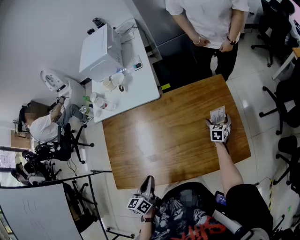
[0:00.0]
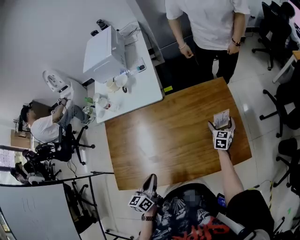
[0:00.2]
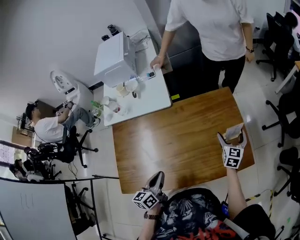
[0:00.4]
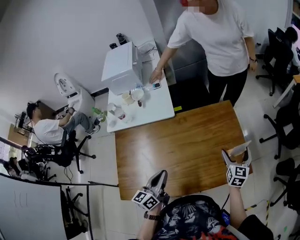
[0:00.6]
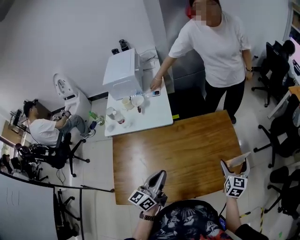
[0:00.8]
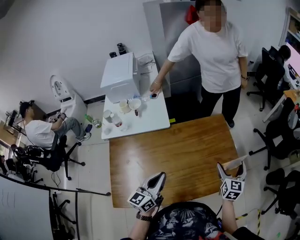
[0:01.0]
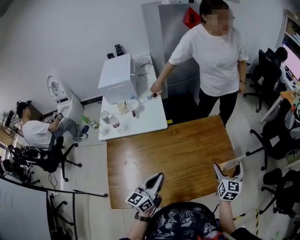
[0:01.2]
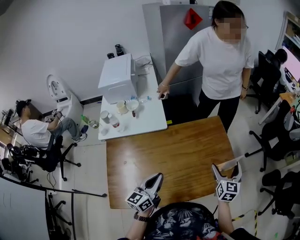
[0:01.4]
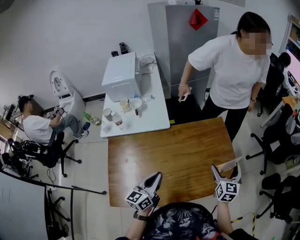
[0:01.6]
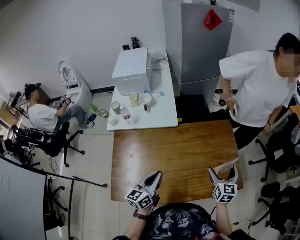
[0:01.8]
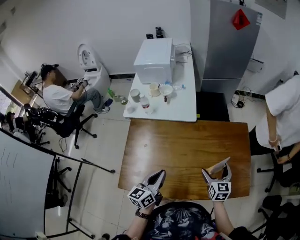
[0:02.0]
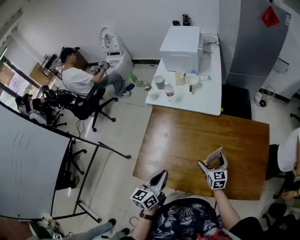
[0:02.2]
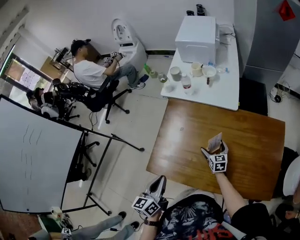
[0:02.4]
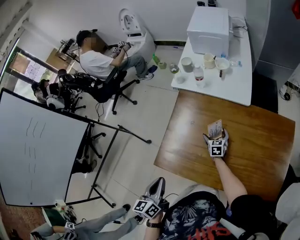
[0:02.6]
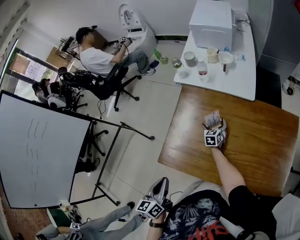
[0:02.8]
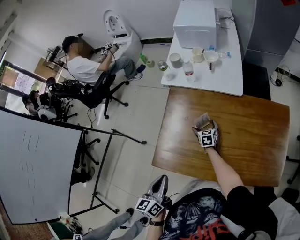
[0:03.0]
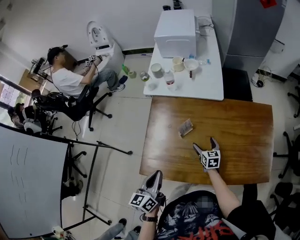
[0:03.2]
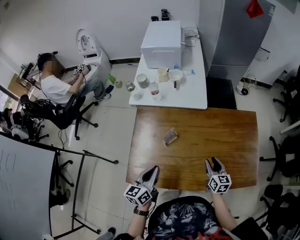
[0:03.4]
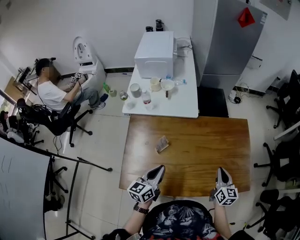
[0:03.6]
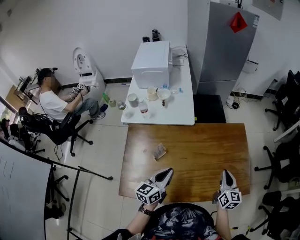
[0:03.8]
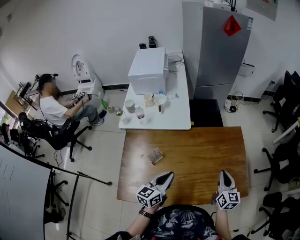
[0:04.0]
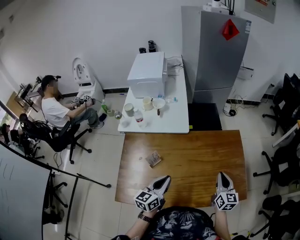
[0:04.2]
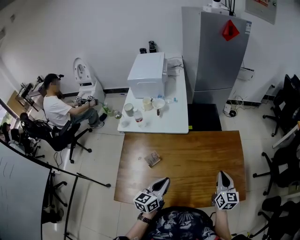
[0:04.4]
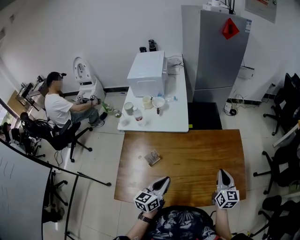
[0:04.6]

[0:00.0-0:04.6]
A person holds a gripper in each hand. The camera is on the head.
0:00.0 to 0:01.6: The right gripper heads upward and backward, covering approximately 35 cm, and swivels some 30 degrees, while the left gripper heads upward and forward, covering some 15 cm, and swivels about 30 degrees.
0:01.6 to 0:03.0: The right gripper changes place by about 60 cm, and turns by roughly 50 degrees. Meanwhile the left gripper shifts by approximately 30 cm, and turns by approximately 40 degrees.
0:03.0 to 0:04.6: The right gripper shifts by roughly 50 cm, rotates roughly 40 degrees, and closes; the left gripper moves about 30 cm, and changes its angle by roughly 30 degrees.

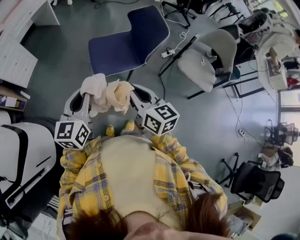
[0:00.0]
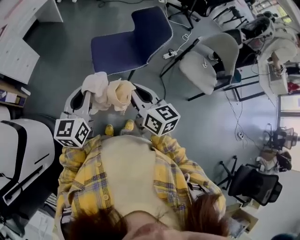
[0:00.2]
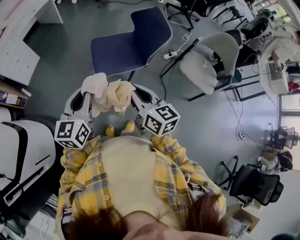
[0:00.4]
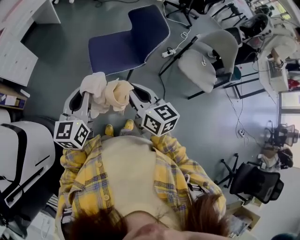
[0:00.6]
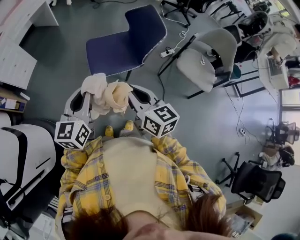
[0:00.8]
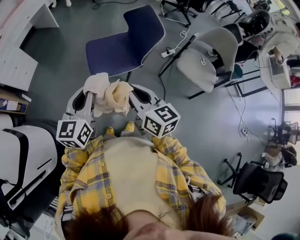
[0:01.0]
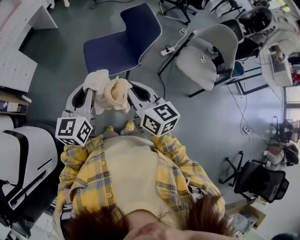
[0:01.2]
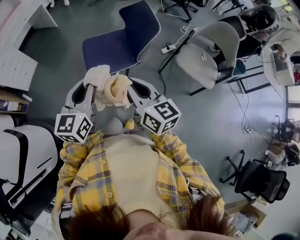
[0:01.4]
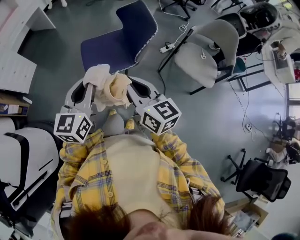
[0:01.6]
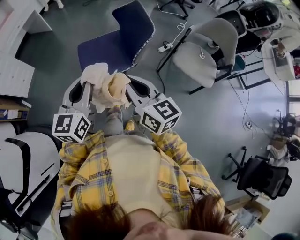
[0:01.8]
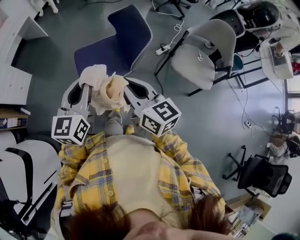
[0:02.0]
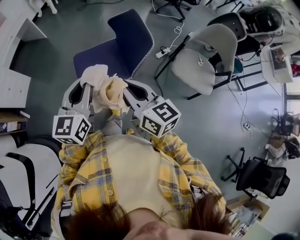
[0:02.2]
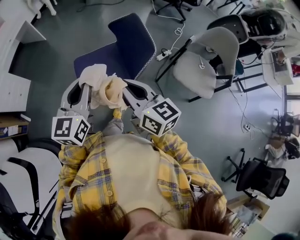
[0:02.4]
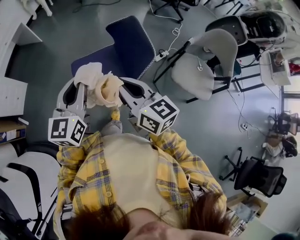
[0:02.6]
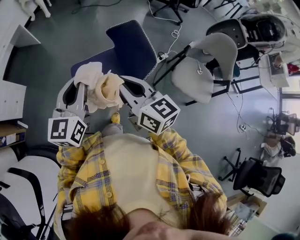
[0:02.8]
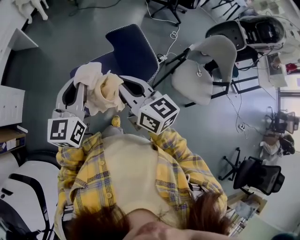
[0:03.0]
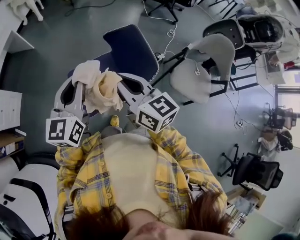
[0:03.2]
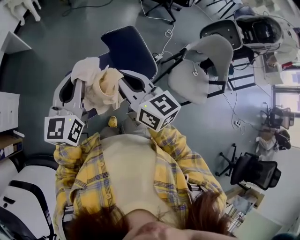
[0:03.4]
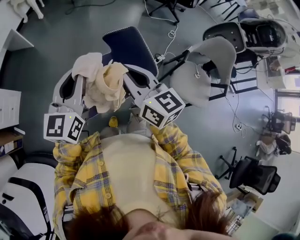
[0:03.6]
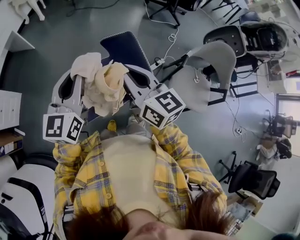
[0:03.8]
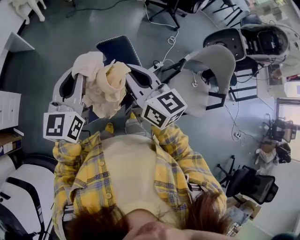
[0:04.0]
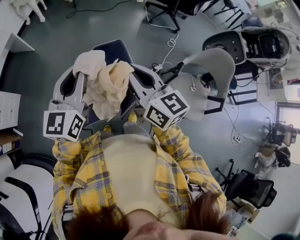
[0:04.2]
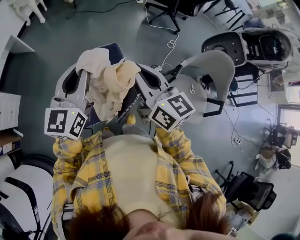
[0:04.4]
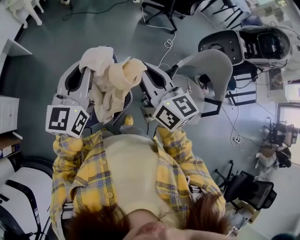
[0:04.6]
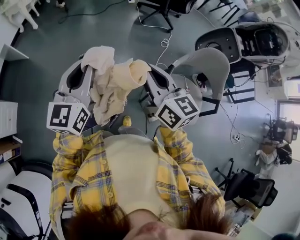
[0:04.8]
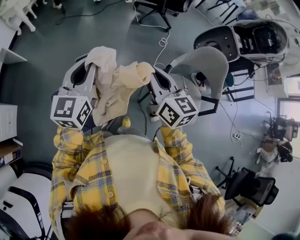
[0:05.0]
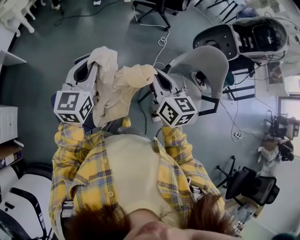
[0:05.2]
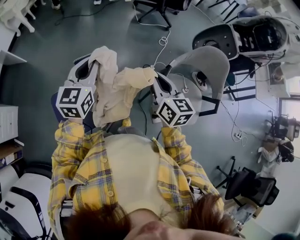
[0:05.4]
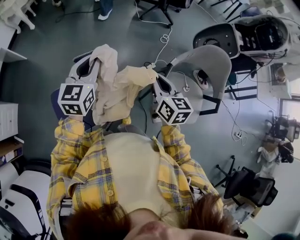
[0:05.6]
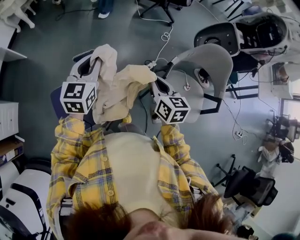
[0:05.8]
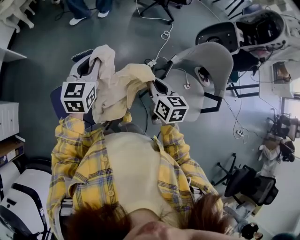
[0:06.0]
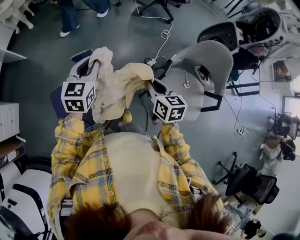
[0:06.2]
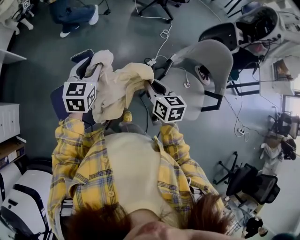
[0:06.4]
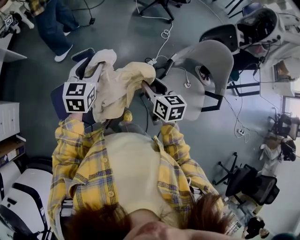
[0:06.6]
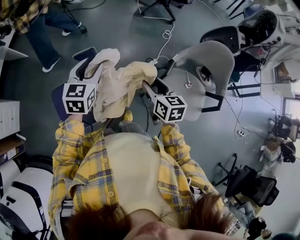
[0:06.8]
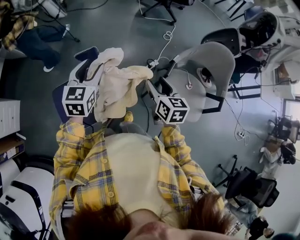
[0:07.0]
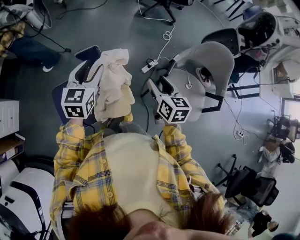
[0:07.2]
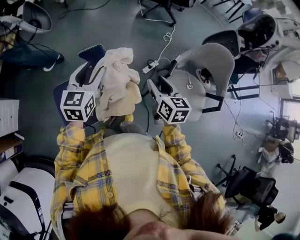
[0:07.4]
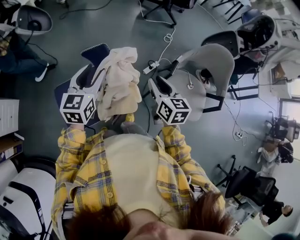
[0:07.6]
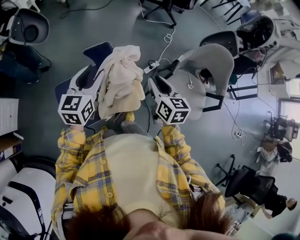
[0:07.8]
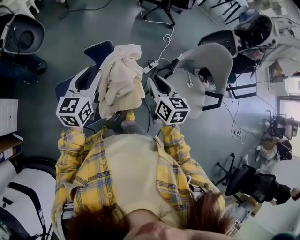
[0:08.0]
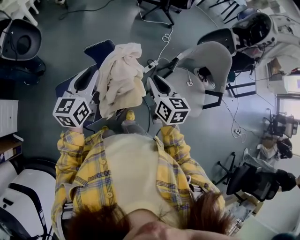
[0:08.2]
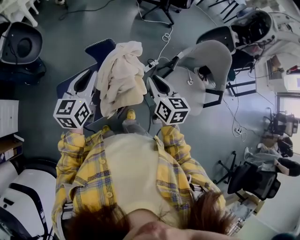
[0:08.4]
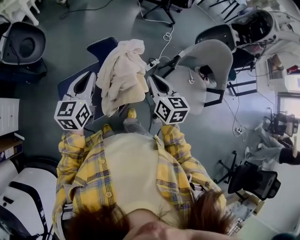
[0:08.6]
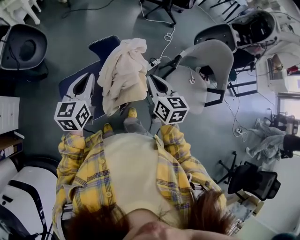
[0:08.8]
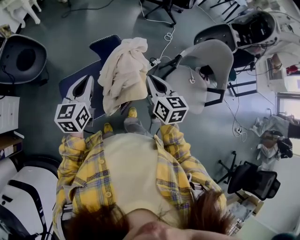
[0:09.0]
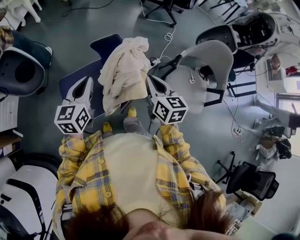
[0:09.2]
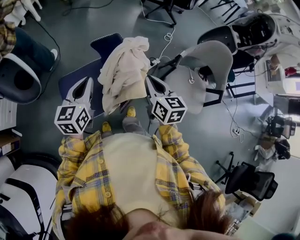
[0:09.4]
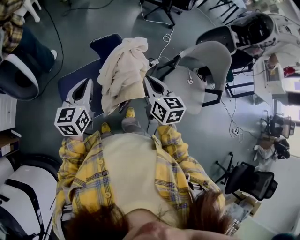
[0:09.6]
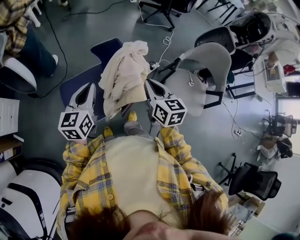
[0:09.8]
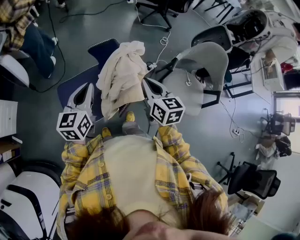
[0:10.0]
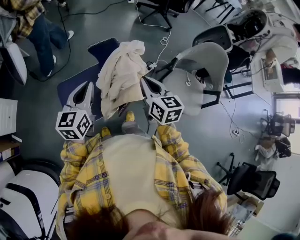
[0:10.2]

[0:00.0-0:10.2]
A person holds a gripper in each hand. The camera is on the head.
0:00.0 to 0:01.4: The left gripper moves to the right, some 10 cm. The right gripper goes some 5 cm to the right.
0:01.4 to 0:03.0: Both grippers travel together forward, approximately 25 cm.
0:03.0 to 0:04.4: The two grippers go about 20 cm to the right and forward.
0:04.4 to 0:05.8: The left gripper moves to the right, forward and downward, some 20 cm. Meanwhile the right gripper travels to the right and downward by some 25 cm, and changes its angle by approximately 30 degrees.
0:05.8 to 0:07.2: The left gripper moves roughly 5 cm, and opens its fingers; the right gripper opens up.
0:07.2 to 0:08.8: The left gripper travels backward and to the left by roughly 15 cm, and closes its fingers, while the right gripper moves to the left and backward, approximately 10 cm, and closes up.
0:08.8 to 0:10.2: The grippers make only small movements.

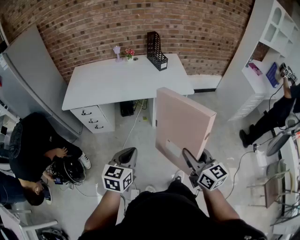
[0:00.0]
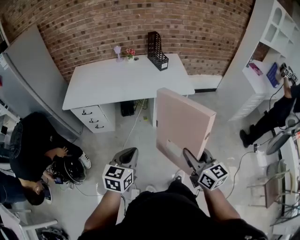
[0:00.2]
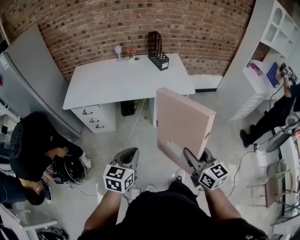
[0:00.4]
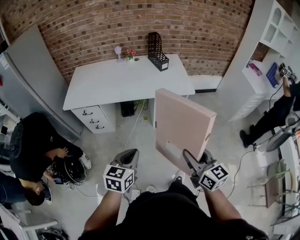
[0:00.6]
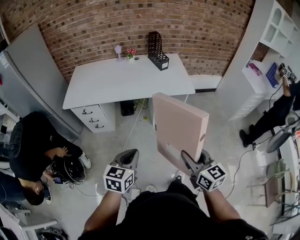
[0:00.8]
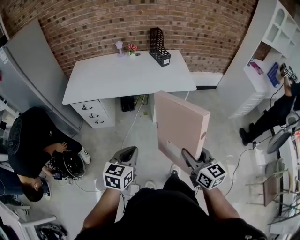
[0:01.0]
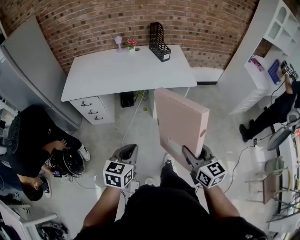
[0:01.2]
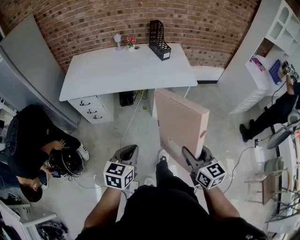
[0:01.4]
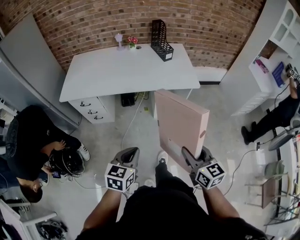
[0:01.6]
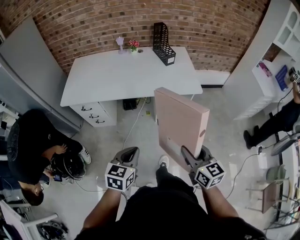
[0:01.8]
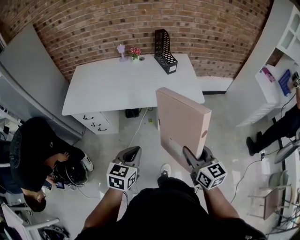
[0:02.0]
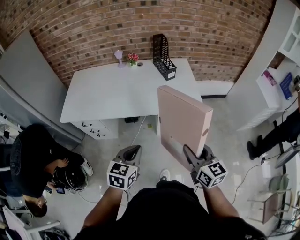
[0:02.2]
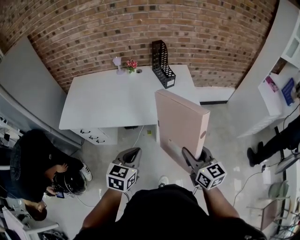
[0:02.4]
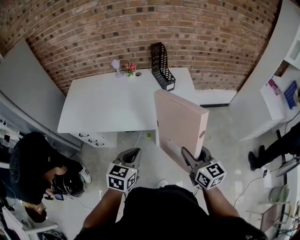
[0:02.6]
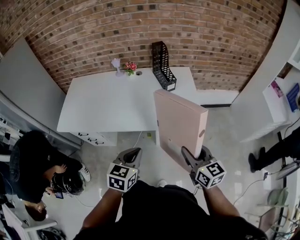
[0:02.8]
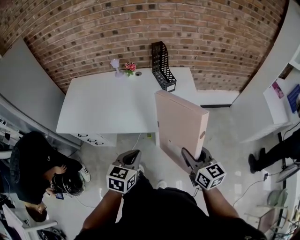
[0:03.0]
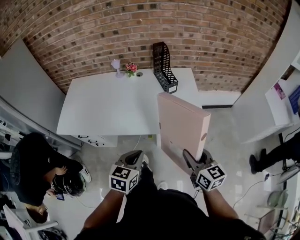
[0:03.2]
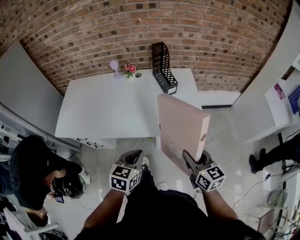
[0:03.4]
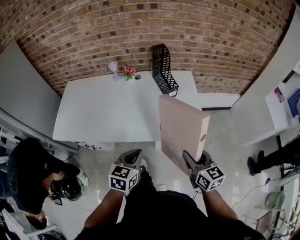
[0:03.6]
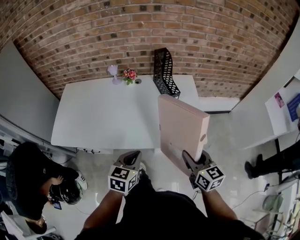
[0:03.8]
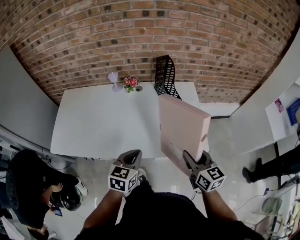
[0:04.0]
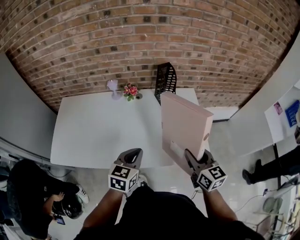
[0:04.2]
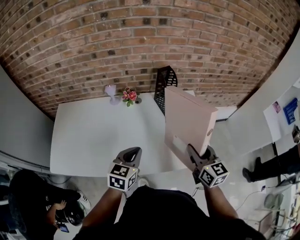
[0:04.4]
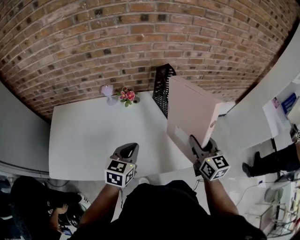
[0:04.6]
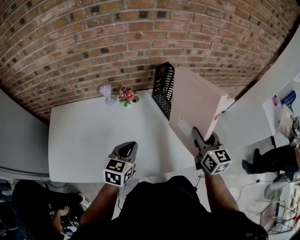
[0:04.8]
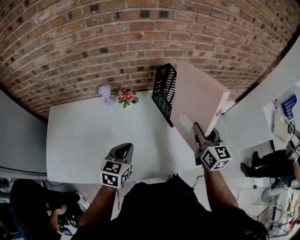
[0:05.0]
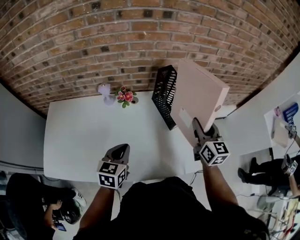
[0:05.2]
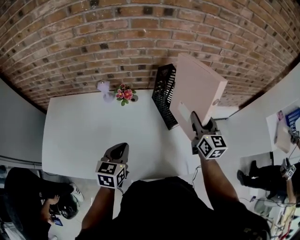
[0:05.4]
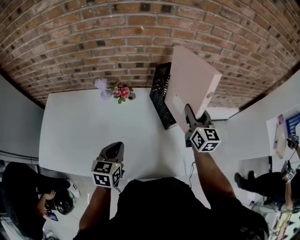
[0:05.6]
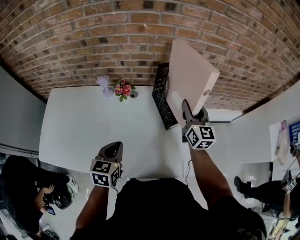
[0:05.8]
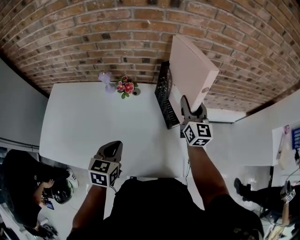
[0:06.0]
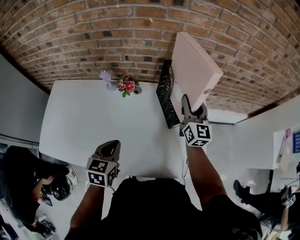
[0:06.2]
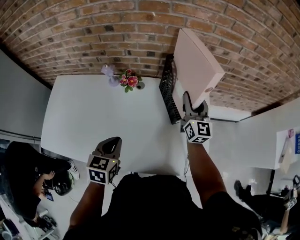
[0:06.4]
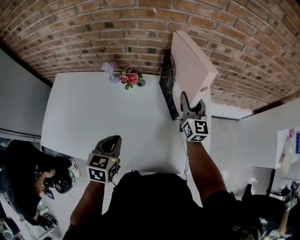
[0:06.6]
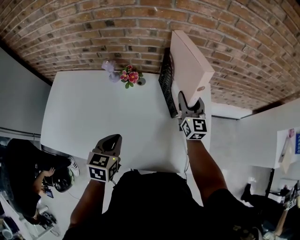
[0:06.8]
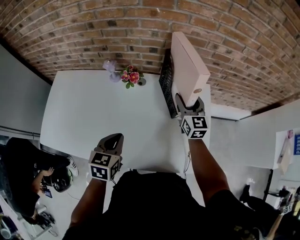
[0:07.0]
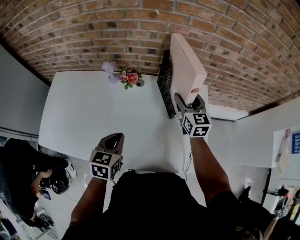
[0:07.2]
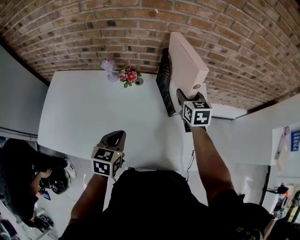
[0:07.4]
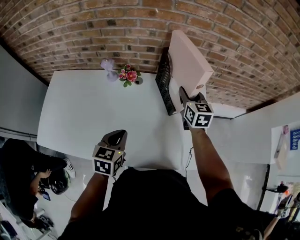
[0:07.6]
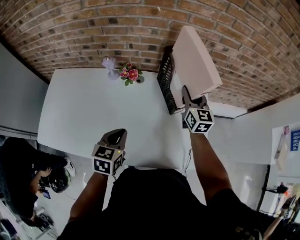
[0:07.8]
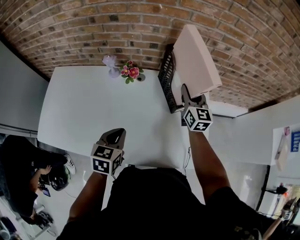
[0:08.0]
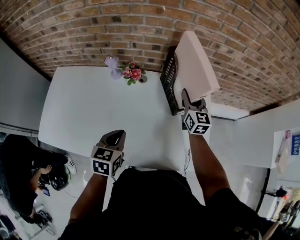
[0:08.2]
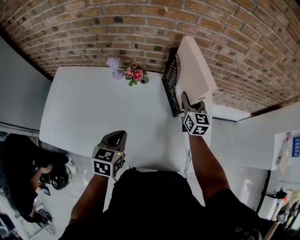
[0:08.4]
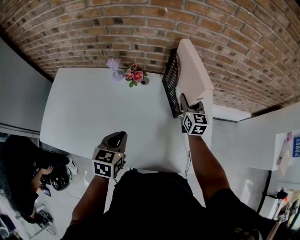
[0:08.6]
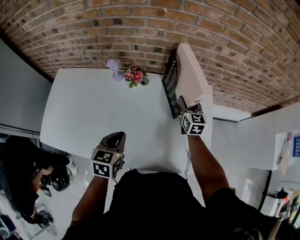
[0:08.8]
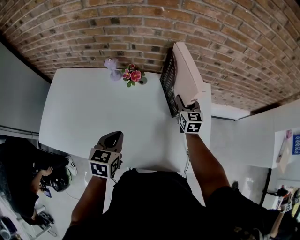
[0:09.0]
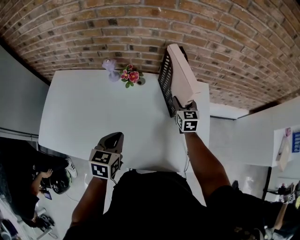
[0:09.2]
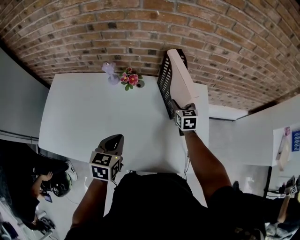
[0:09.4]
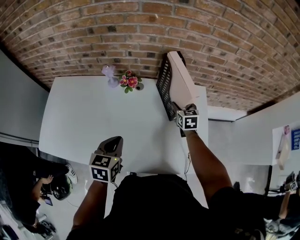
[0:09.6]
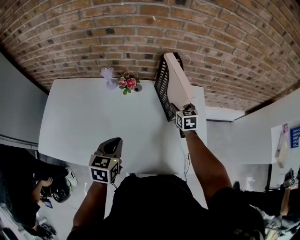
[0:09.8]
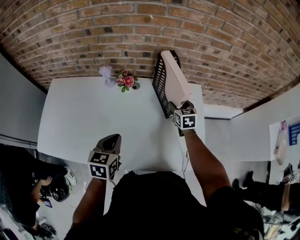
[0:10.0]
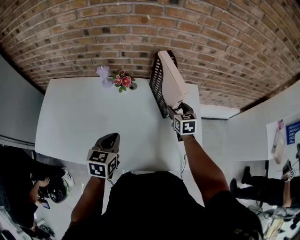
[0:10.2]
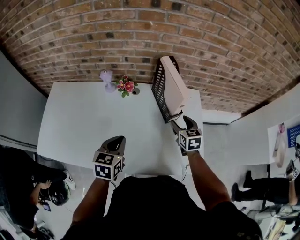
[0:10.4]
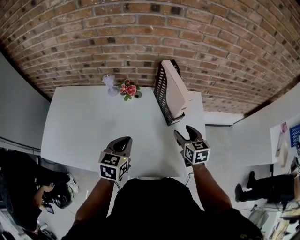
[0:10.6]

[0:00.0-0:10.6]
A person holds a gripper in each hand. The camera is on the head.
0:00.0 to 0:01.6: The right gripper shifts by some 5 cm.
0:01.6 to 0:03.0: Both grippers travel together forward, about 30 cm.
0:03.0 to 0:04.6: Both grippers travel together forward, roughly 30 cm.
0:04.6 to 0:06.0: The right gripper heads forward, covering approximately 25 cm.
0:06.0 to 0:07.6: The right gripper moves some 5 cm, changes its angle by roughly 20 degrees, and opens and closes again.
0:07.6 to 0:09.0: The right gripper travels downward by roughly 10 cm.
0:09.0 to 0:10.6: The right gripper heads backward, covering approximately 15 cm, and opens.
